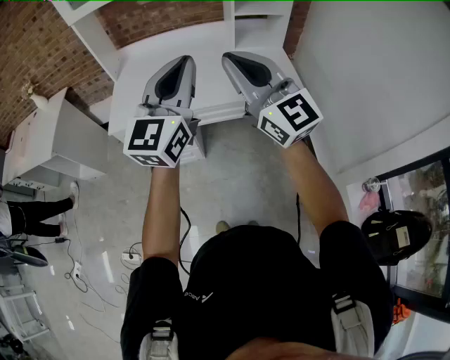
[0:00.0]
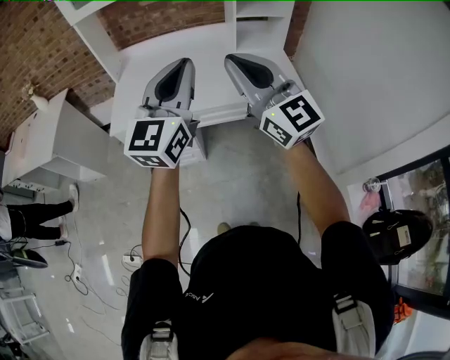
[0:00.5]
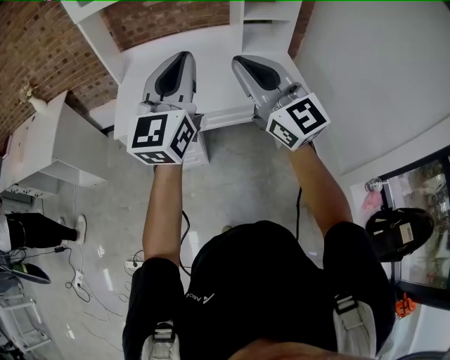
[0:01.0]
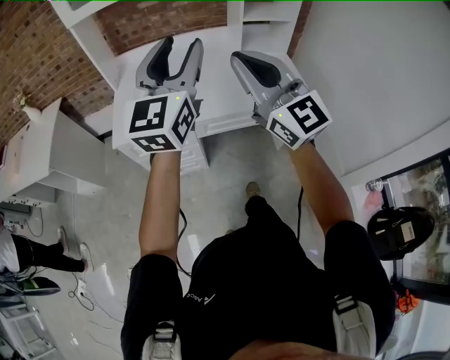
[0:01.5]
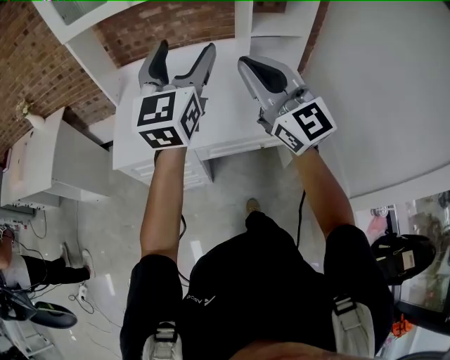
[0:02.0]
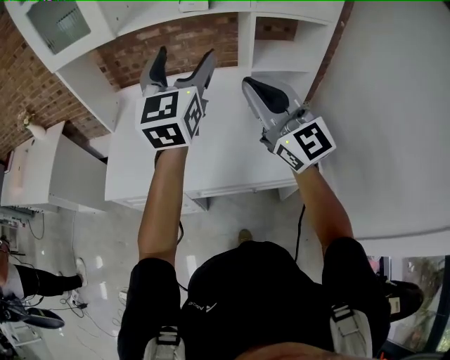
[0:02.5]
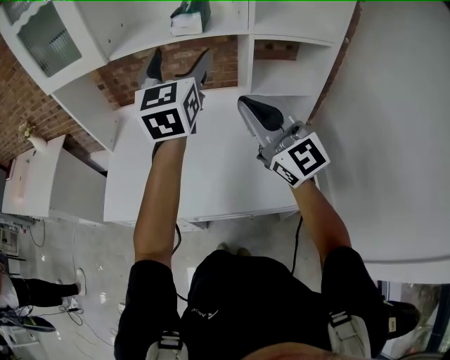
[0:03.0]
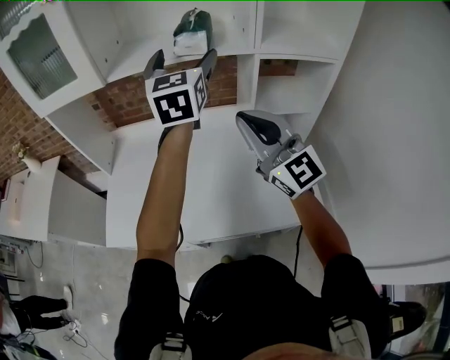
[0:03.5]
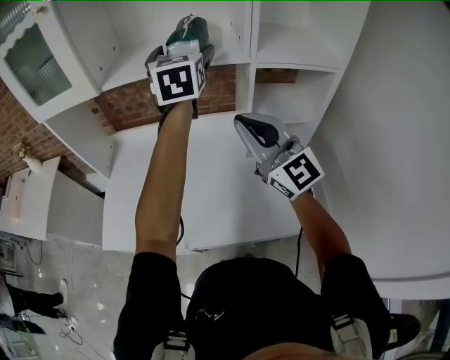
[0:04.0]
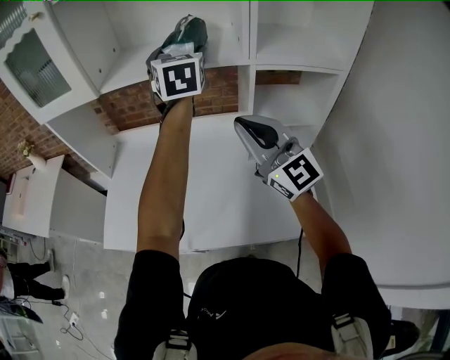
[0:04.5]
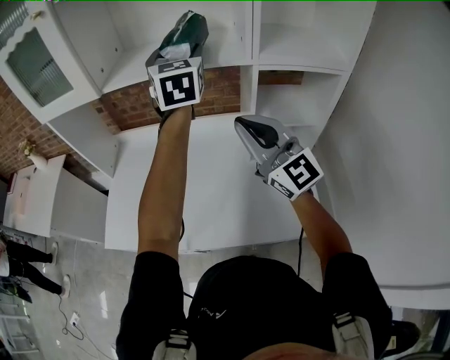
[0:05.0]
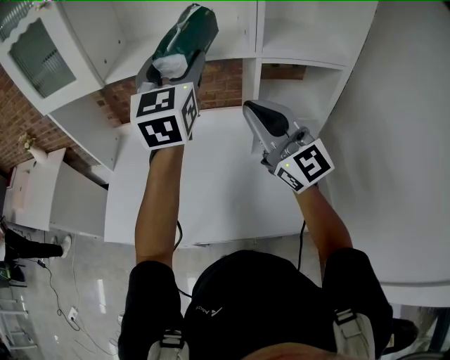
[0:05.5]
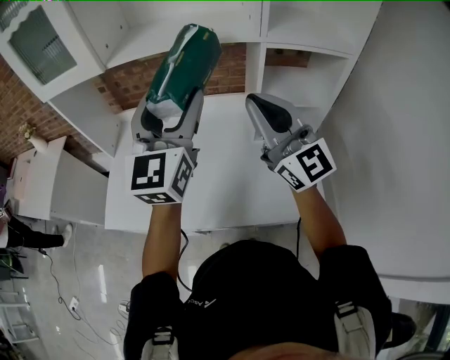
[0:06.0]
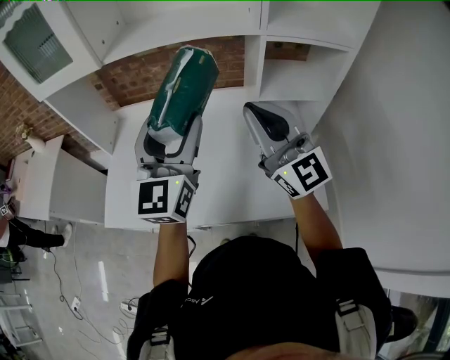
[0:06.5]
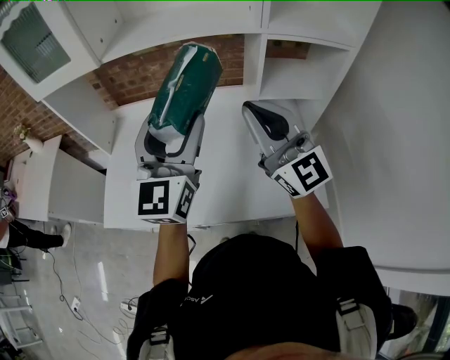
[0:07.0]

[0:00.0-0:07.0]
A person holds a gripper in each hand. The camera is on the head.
0:00.0 to 0:02.0: Both grippers travel together forward, roughly 20 cm. The left gripper opens.
0:02.0 to 0:03.5: The grippers both shift forward and to the right by some 30 cm.
0:03.5 to 0:05.0: The right gripper shifts by approximately 5 cm. Meanwhile the left gripper goes about 5 cm forward.
0:05.0 to 0:07.0: The left gripper goes approximately 25 cm backward and downward, and turns by approximately 20 degrees.

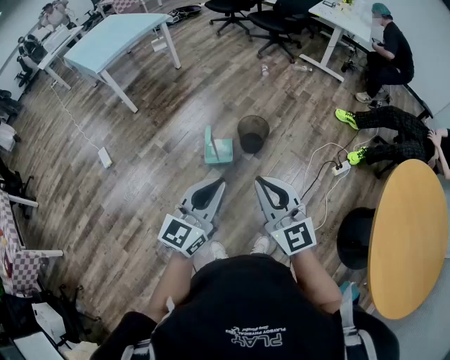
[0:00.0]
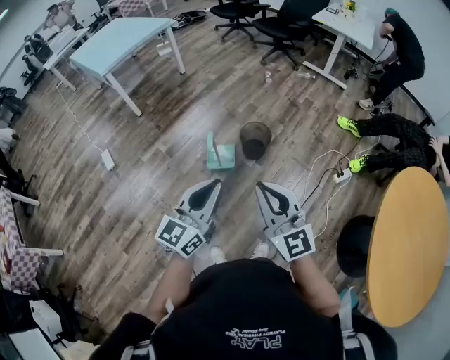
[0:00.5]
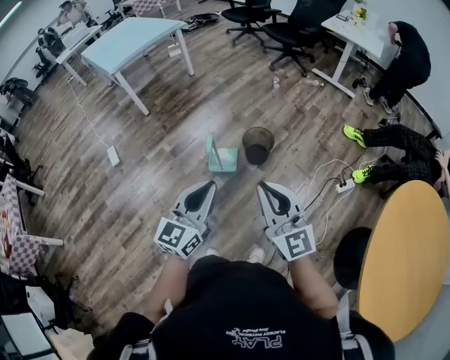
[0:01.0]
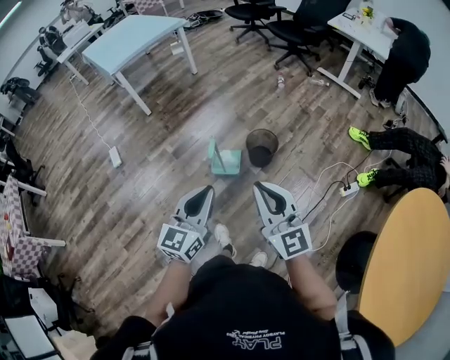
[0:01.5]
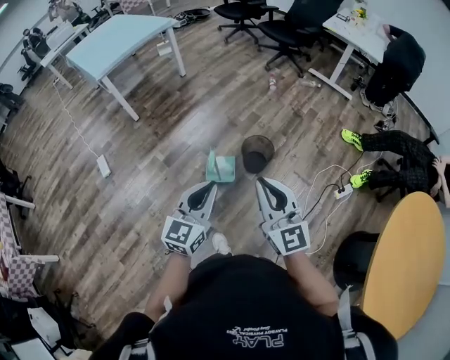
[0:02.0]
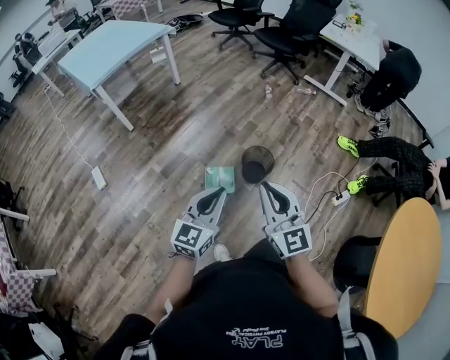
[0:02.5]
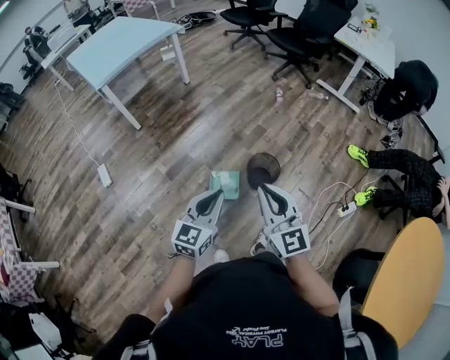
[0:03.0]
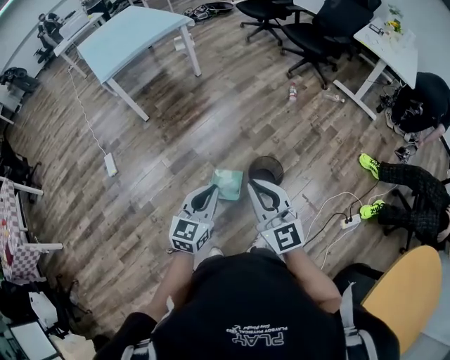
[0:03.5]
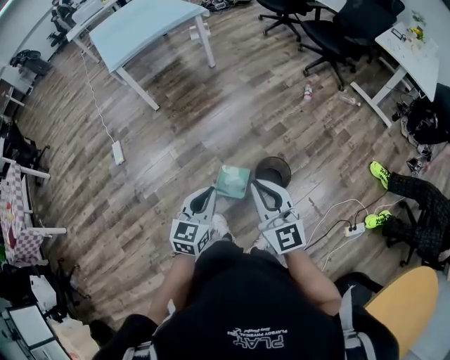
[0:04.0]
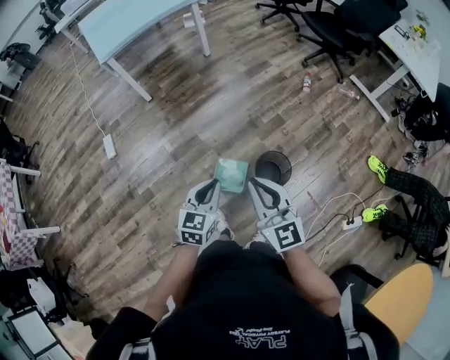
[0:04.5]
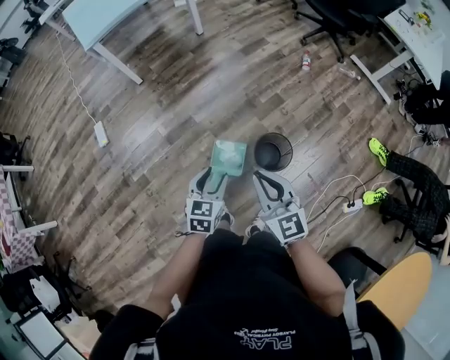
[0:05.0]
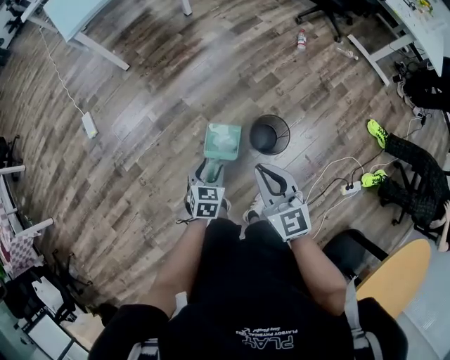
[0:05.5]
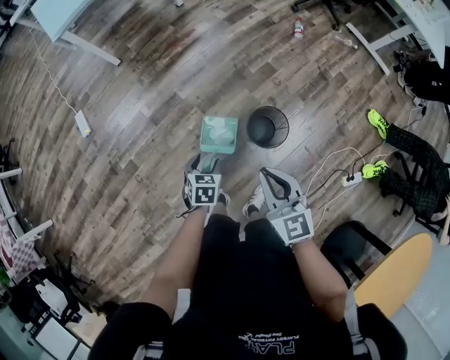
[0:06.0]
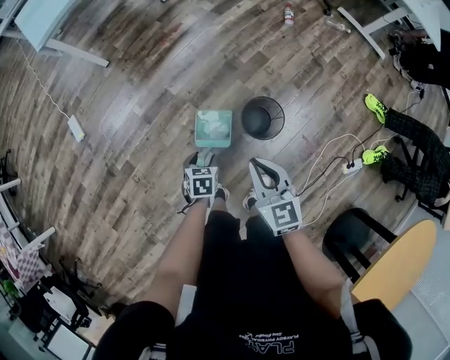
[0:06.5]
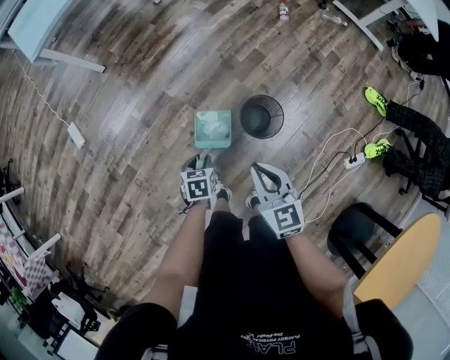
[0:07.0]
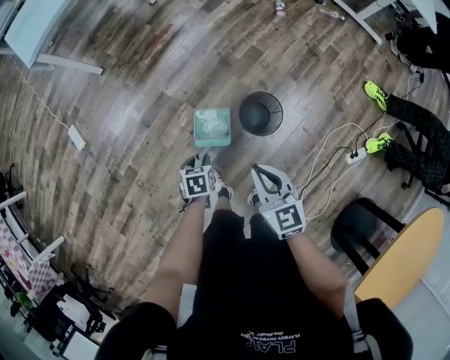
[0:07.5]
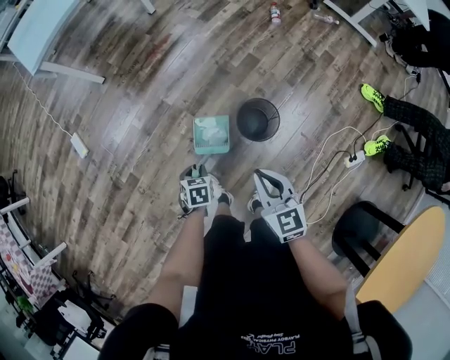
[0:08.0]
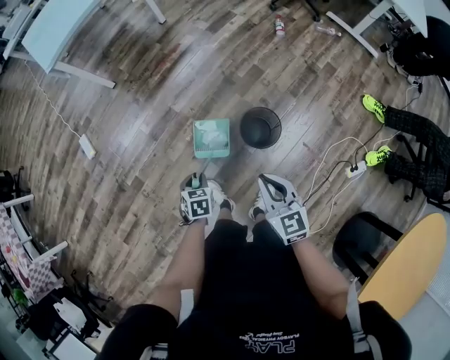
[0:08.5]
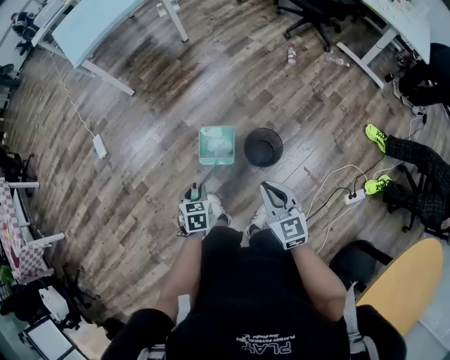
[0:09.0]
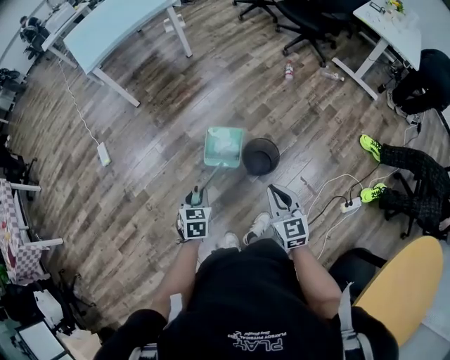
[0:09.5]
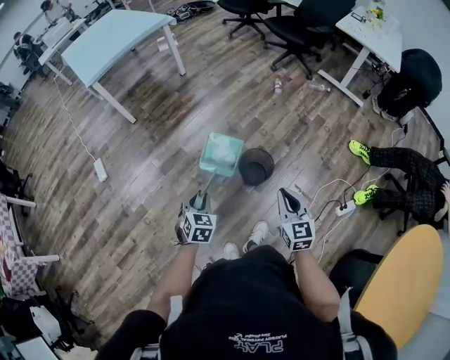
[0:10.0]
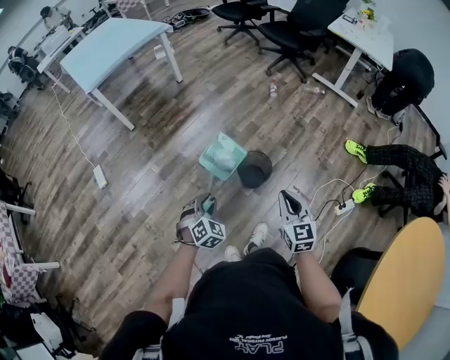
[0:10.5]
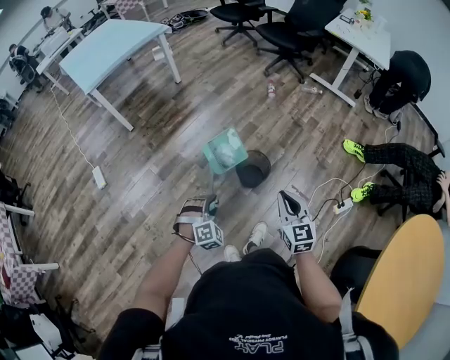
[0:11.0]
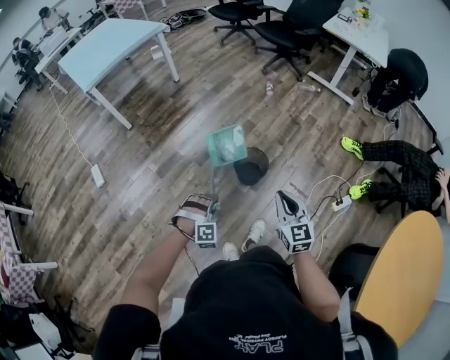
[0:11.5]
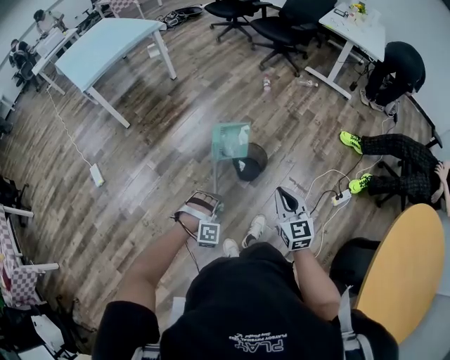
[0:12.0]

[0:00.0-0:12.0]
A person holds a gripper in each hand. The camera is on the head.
0:00.0 to 0:02.0: The grippers both shift forward by about 15 cm.
0:02.0 to 0:04.0: Both grippers travel together forward, approximately 20 cm. The left gripper swivels some 20 degrees.
0:04.0 to 0:06.0: The left gripper heads downward, covering about 30 cm, tilts its fingers about 40 degrees downward, and opens up; the right gripper goes some 15 cm downward, and rotates about 20 degrees.
0:06.0 to 0:08.0: The grippers both shift downward by some 5 cm. The left gripper closes up.
0:08.0 to 0:10.0: The right gripper moves backward, to the right and upward, some 15 cm, while the left gripper shifts some 20 cm upward and backward, and changes its angle by some 30 degrees.
0:10.0 to 0:12.0: The left gripper shifts roughly 10 cm backward and to the right, and rotates around the line of its fingers by roughly 80 degrees, clockwise from behind. Meanwhile the right gripper goes roughly 5 cm backward.

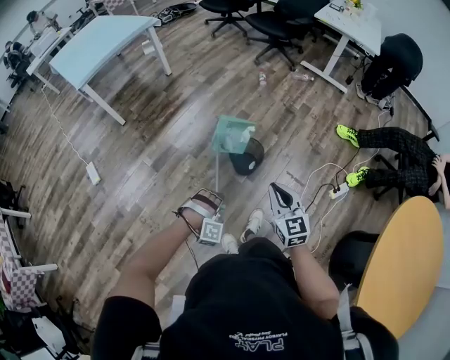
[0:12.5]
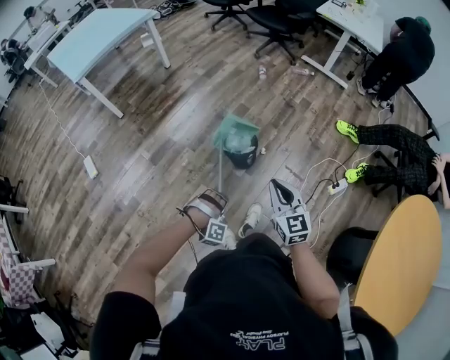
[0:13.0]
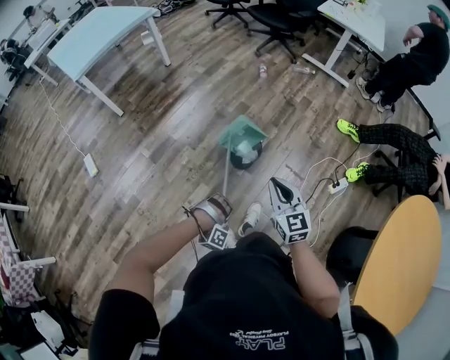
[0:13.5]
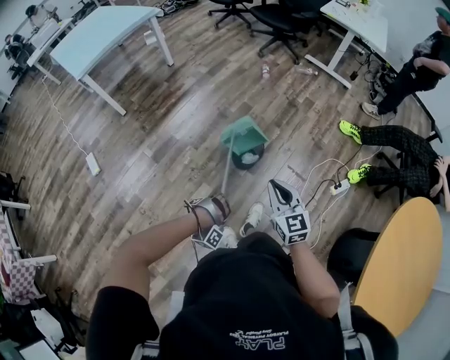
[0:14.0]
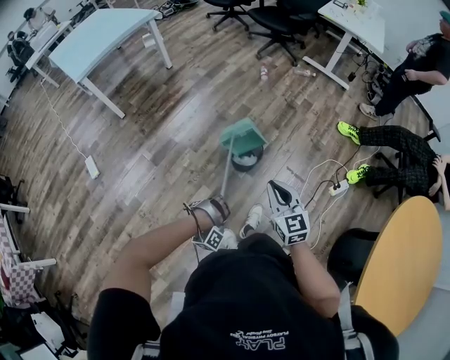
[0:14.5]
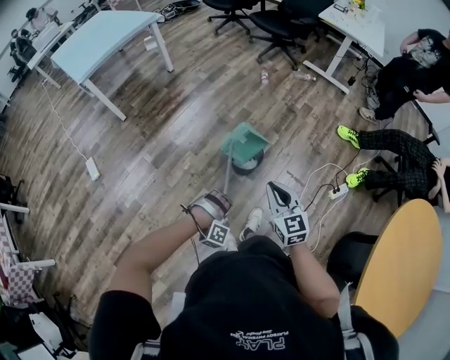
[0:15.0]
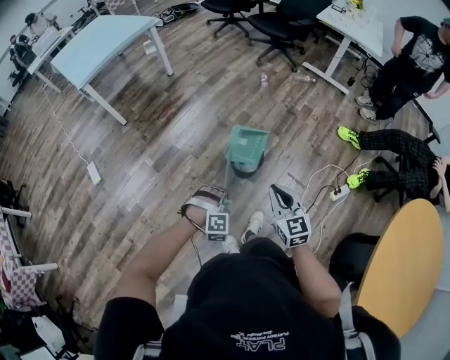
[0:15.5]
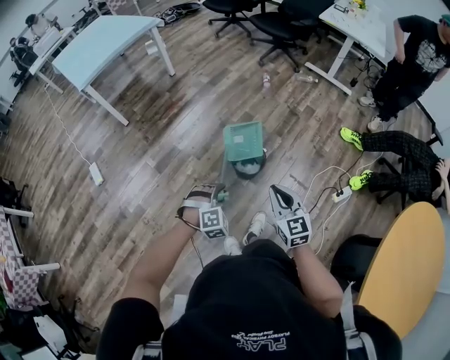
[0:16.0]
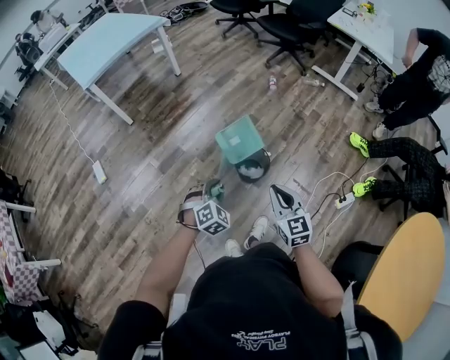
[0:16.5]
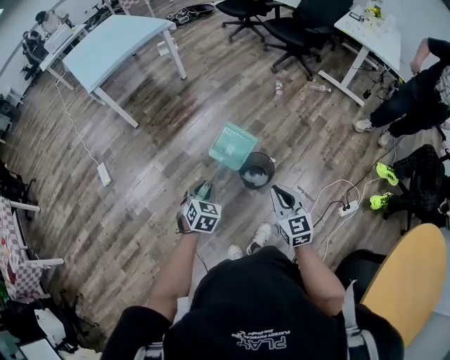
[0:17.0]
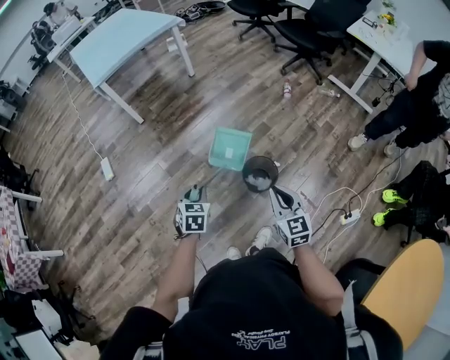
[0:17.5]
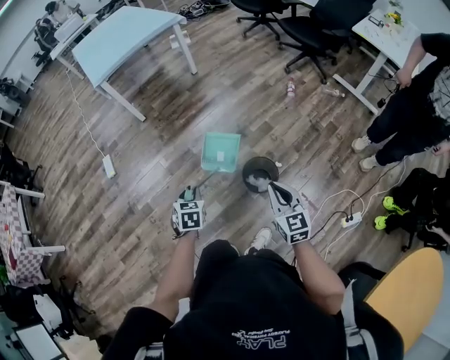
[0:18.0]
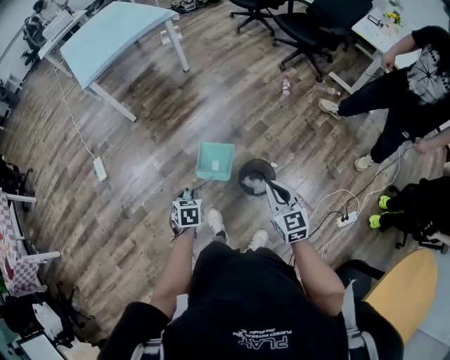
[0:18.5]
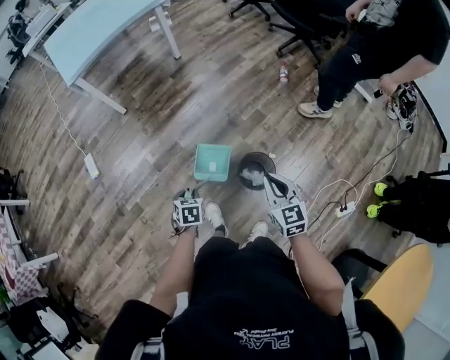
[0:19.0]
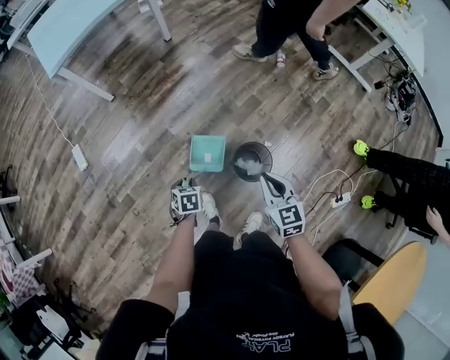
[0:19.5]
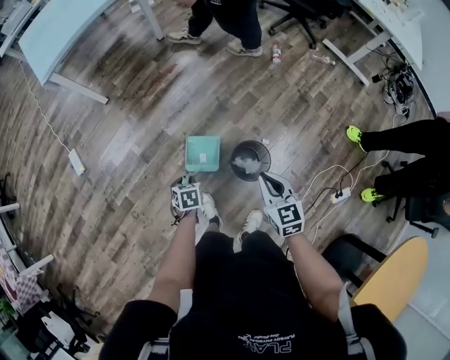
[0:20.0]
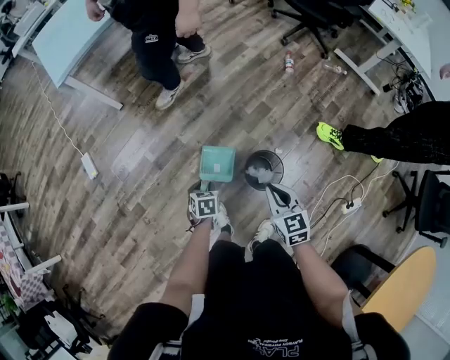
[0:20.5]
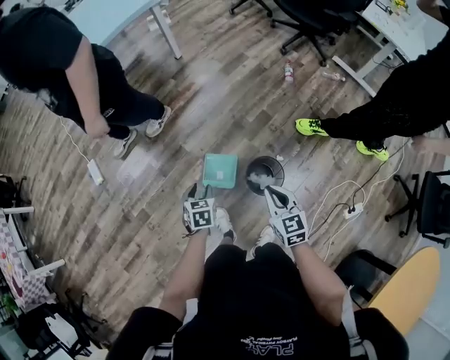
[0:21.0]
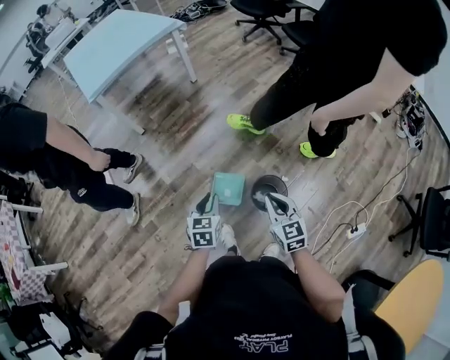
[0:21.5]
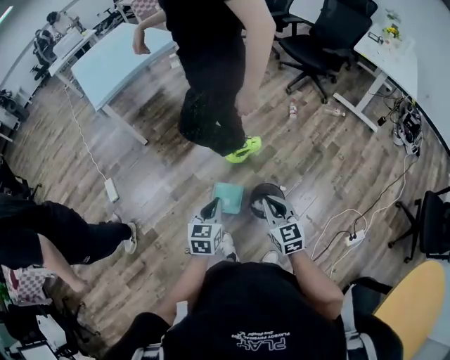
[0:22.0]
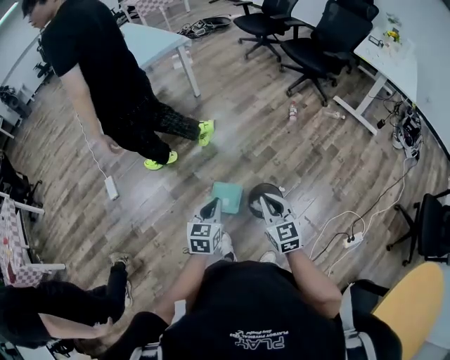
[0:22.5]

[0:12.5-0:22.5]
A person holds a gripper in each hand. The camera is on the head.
0:12.5 to 0:14.5: The left gripper goes about 5 cm downward, and rotates roughly 30 degrees.
0:14.5 to 0:16.5: The right gripper travels forward by approximately 5 cm. The left gripper moves forward and upward, roughly 20 cm, and rolls counterclockwise, seen from behind, by some 90 degrees.
0:16.5 to 0:18.5: The left gripper travels forward, to the left and downward by about 20 cm, and rolls counterclockwise, seen from behind, by about 60 degrees; the right gripper goes about 15 cm forward.
0:18.5 to 0:20.5: Both grippers move downward and forward, roughly 15 cm.
0:20.5 to 0:22.5: The left gripper shifts approximately 25 cm upward, tips its fingers upward by about 30 degrees, and closes; the right gripper travels upward by about 10 cm.
